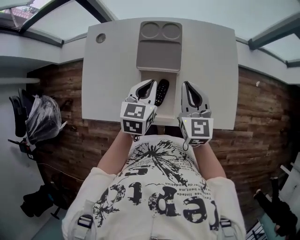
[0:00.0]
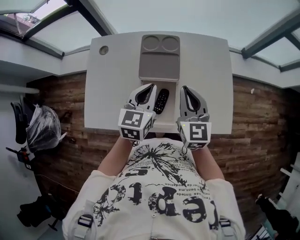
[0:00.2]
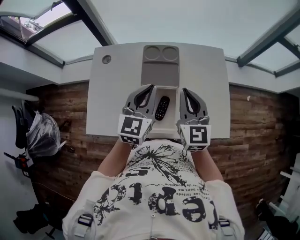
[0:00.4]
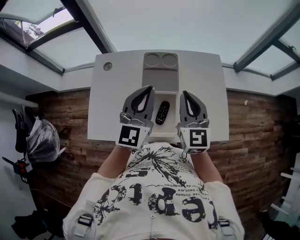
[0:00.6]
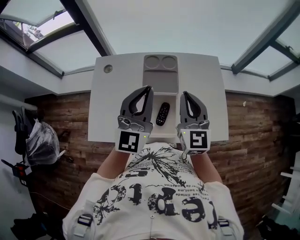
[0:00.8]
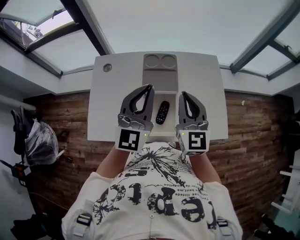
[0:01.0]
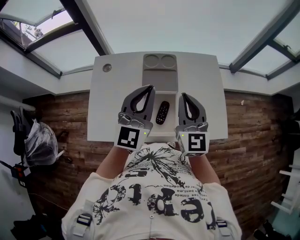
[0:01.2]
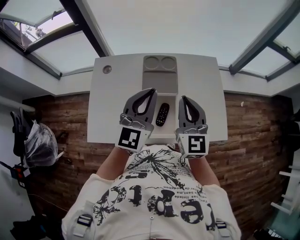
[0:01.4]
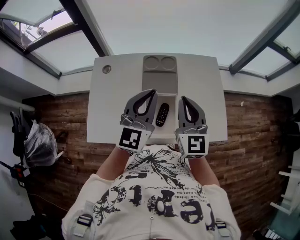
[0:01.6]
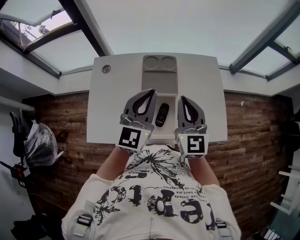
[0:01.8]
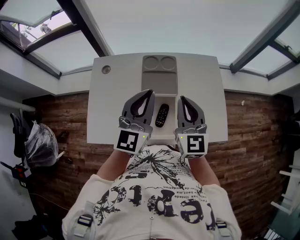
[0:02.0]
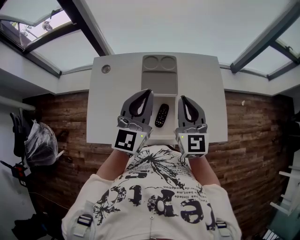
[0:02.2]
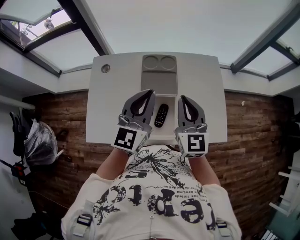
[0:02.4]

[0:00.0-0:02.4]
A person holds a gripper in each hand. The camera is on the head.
0:00.0 to 0:01.2: The right gripper travels upward by approximately 10 cm, and swivels approximately 20 degrees; the left gripper moves upward, roughly 20 cm, and angles its fingers upward, by some 40 degrees.
0:01.2 to 0:02.4: The grippers move only a little.

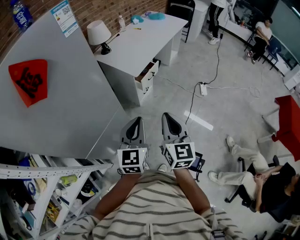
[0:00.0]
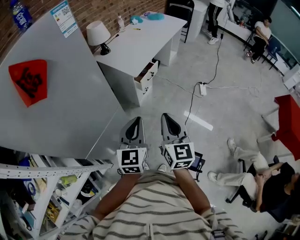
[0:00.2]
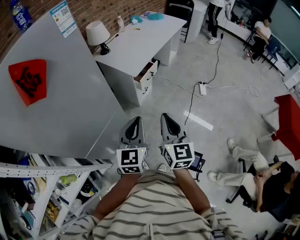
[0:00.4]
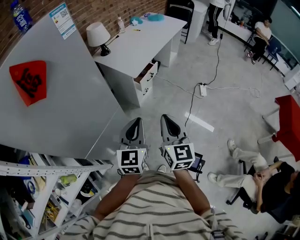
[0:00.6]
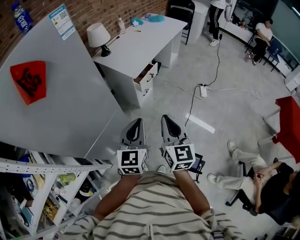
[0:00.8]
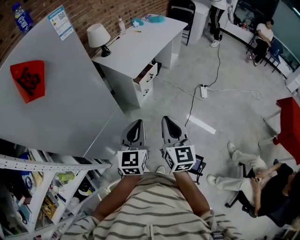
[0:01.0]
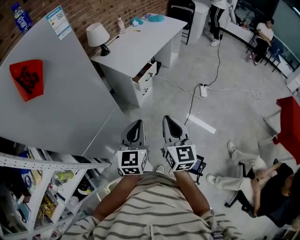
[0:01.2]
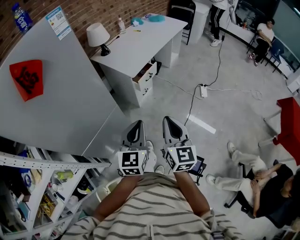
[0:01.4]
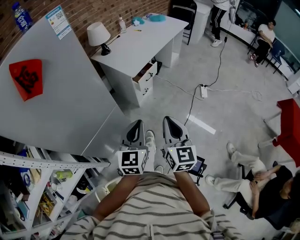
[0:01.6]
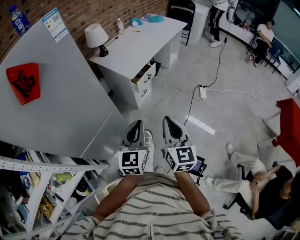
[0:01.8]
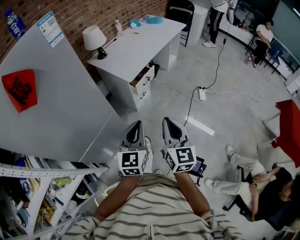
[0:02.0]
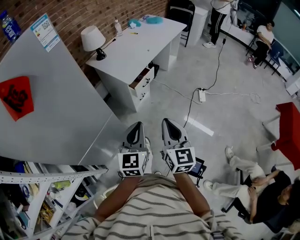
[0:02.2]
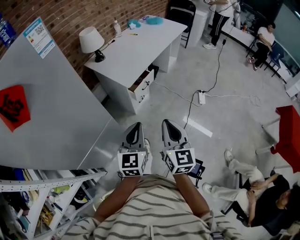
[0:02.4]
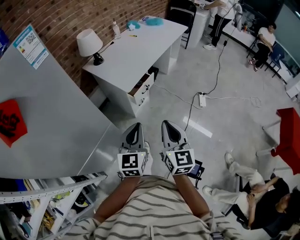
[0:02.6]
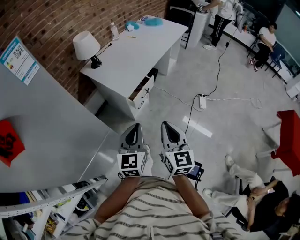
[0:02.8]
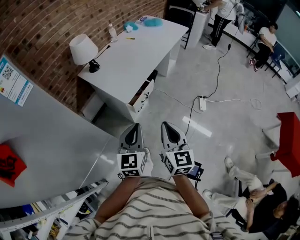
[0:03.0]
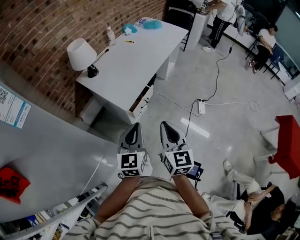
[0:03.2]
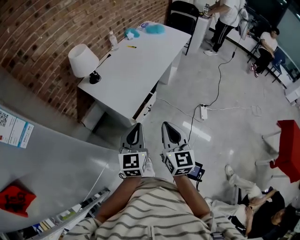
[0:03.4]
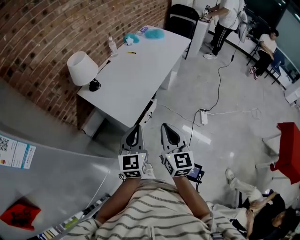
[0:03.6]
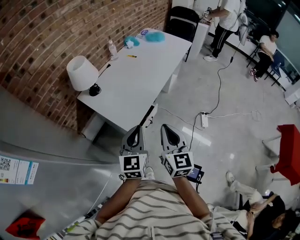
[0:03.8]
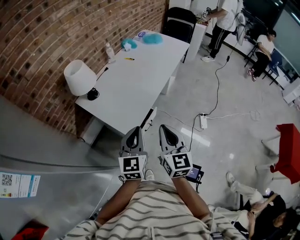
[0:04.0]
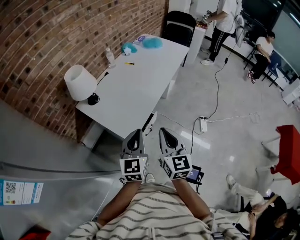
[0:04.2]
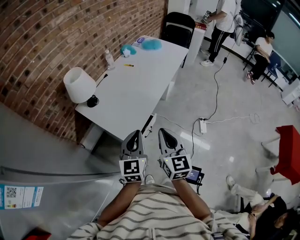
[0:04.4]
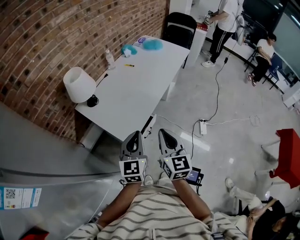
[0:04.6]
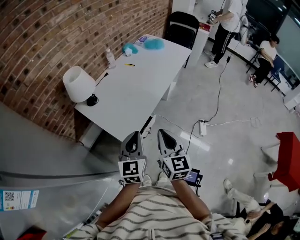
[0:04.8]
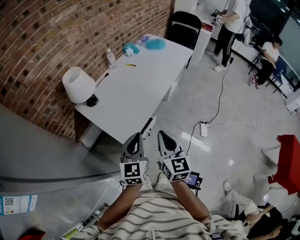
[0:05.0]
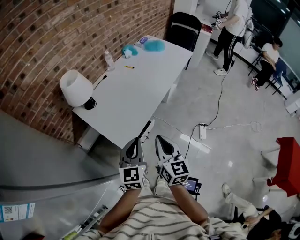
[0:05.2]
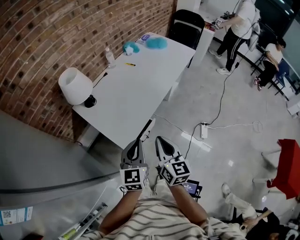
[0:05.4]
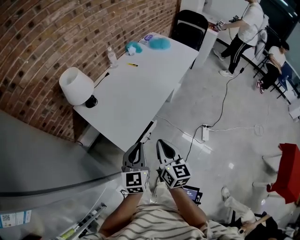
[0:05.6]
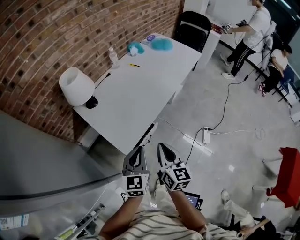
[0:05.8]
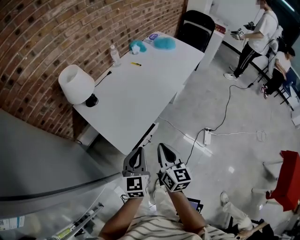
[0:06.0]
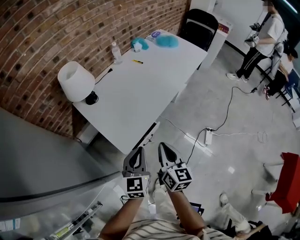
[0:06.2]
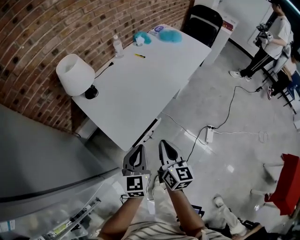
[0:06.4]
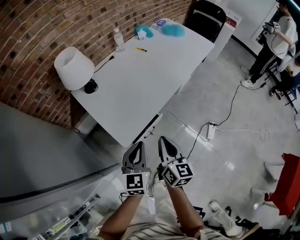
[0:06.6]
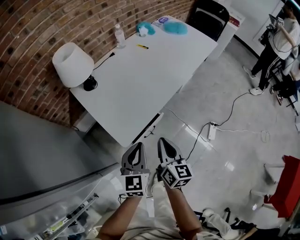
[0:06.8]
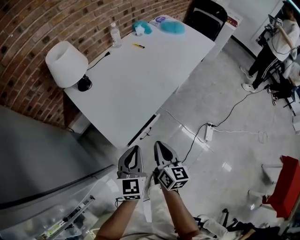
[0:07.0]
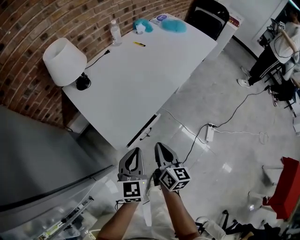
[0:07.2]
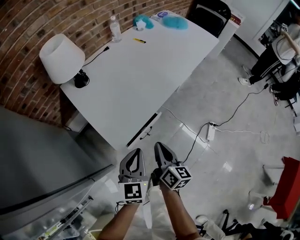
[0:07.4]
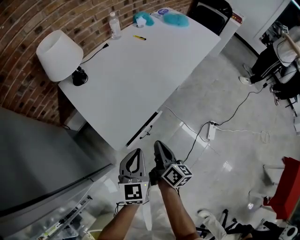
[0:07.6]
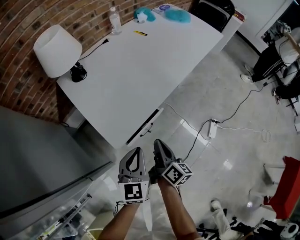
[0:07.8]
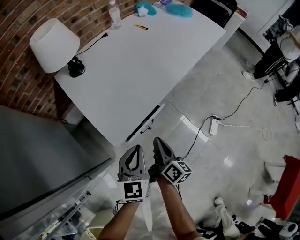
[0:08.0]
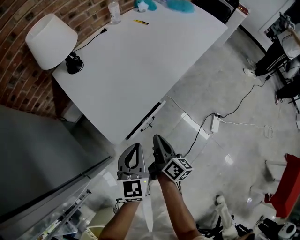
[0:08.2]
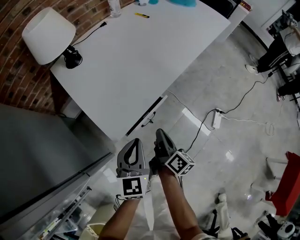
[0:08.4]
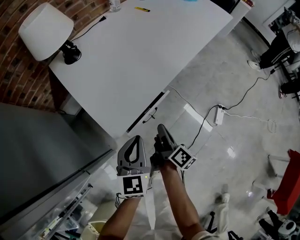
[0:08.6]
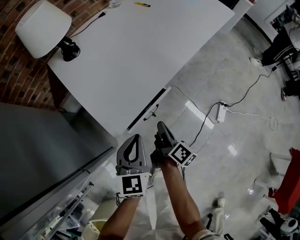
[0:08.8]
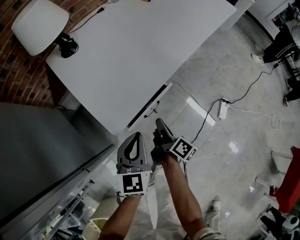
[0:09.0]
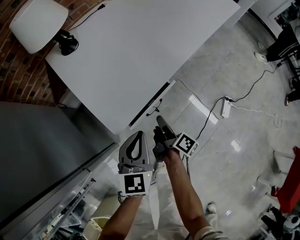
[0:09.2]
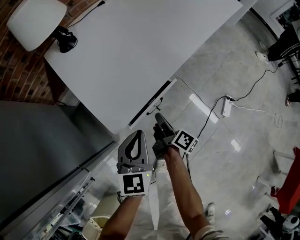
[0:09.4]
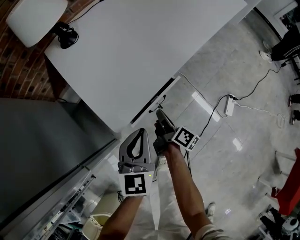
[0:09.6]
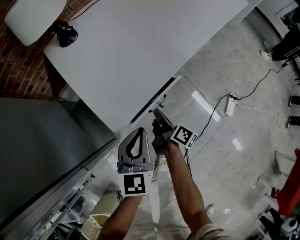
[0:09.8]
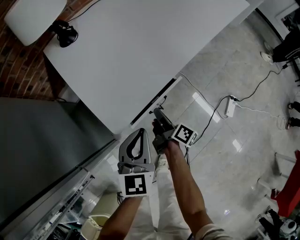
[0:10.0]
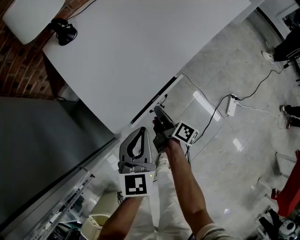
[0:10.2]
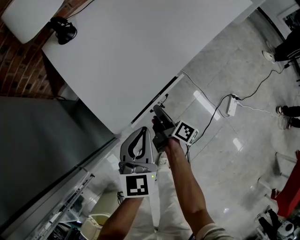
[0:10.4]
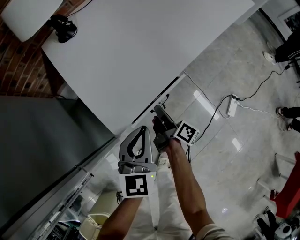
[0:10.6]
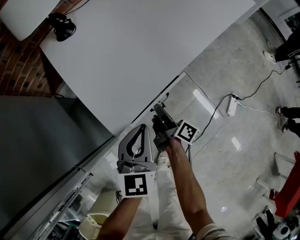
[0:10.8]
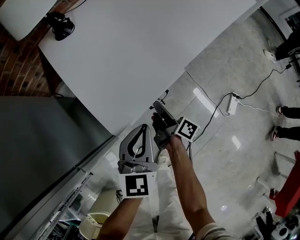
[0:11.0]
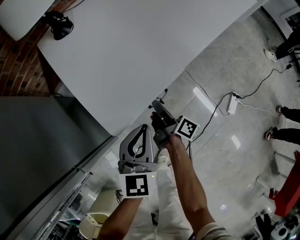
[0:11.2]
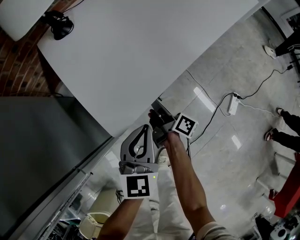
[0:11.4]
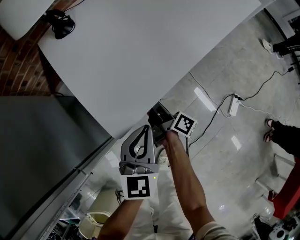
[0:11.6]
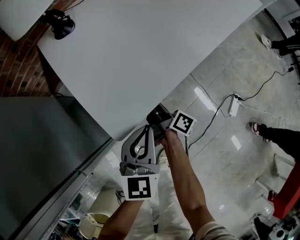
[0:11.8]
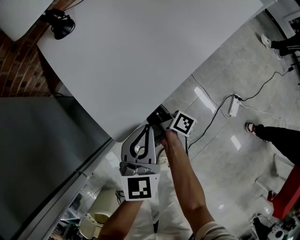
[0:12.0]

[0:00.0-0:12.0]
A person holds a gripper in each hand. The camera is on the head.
0:00.0 to 0:01.6: The grippers both shift to the right by roughly 5 cm.
0:01.6 to 0:03.0: Both grippers travel together forward, about 25 cm.
0:03.0 to 0:04.4: The grippers both shift forward by about 25 cm.
0:04.4 to 0:06.0: The right gripper shifts some 10 cm downward and forward. The left gripper heads downward, covering about 5 cm.
0:06.0 to 0:07.6: The grippers both shift downward by some 15 cm. The right gripper rotates about 30 degrees.
0:07.6 to 0:09.0: The left gripper goes approximately 10 cm downward, while the right gripper is displaced downward by some 15 cm, and swivels approximately 20 degrees.
0:09.0 to 0:10.4: The right gripper goes roughly 5 cm downward.
0:10.4 to 0:12.0: The right gripper travels forward by about 5 cm.

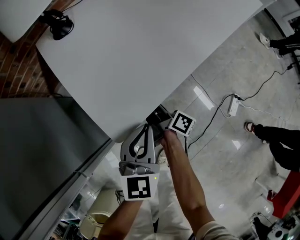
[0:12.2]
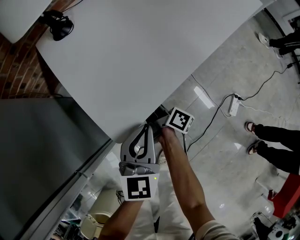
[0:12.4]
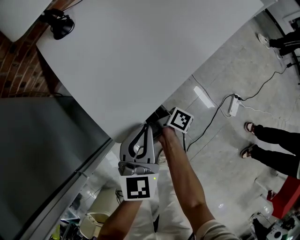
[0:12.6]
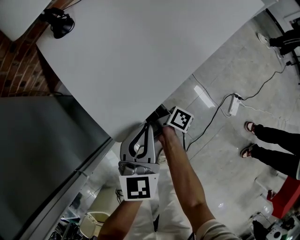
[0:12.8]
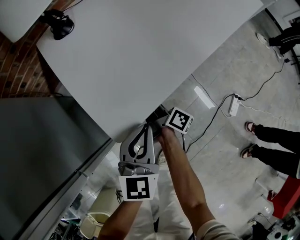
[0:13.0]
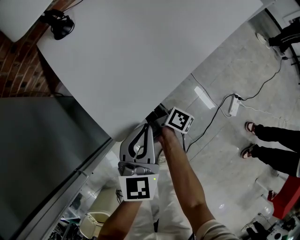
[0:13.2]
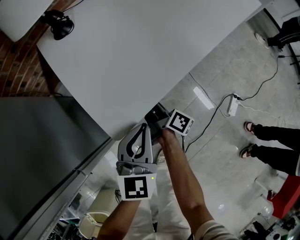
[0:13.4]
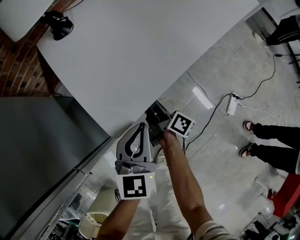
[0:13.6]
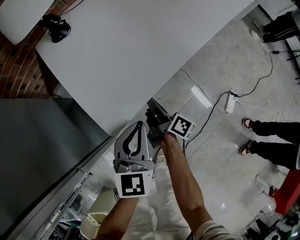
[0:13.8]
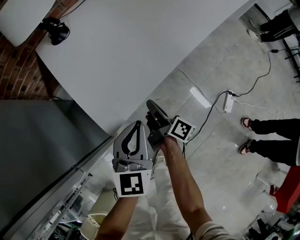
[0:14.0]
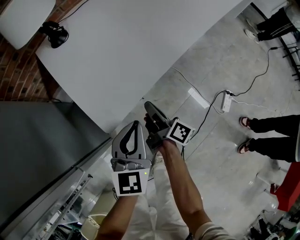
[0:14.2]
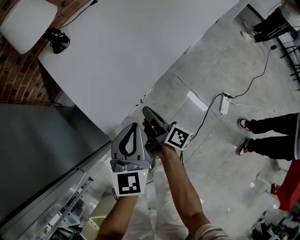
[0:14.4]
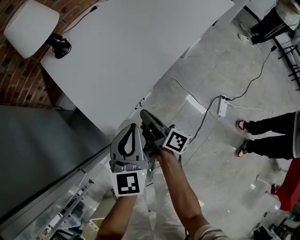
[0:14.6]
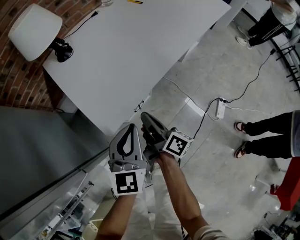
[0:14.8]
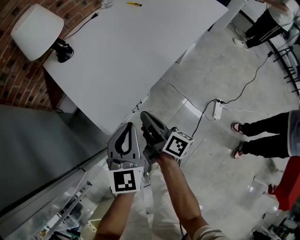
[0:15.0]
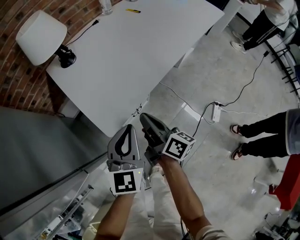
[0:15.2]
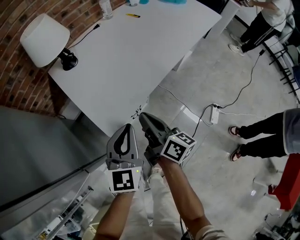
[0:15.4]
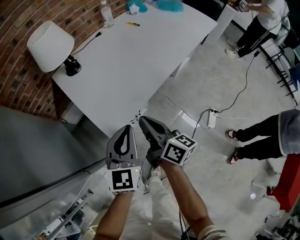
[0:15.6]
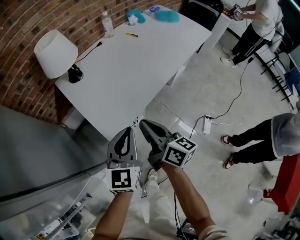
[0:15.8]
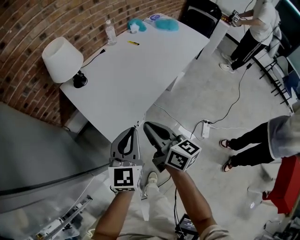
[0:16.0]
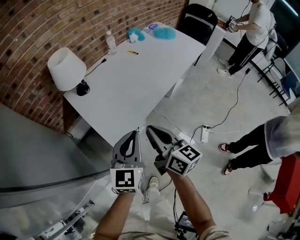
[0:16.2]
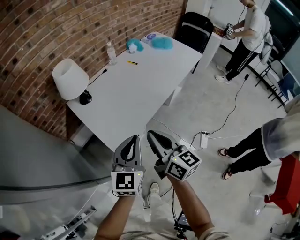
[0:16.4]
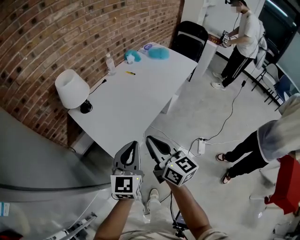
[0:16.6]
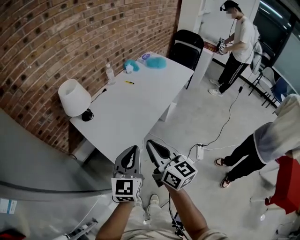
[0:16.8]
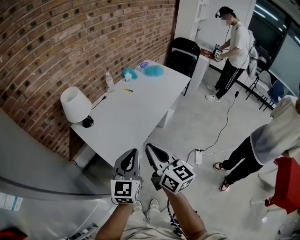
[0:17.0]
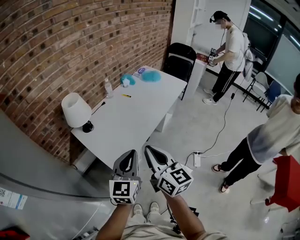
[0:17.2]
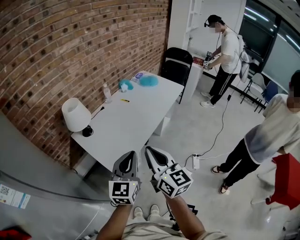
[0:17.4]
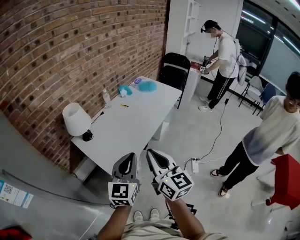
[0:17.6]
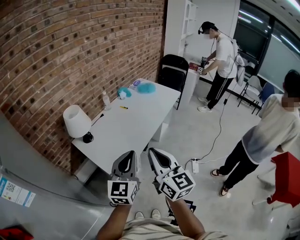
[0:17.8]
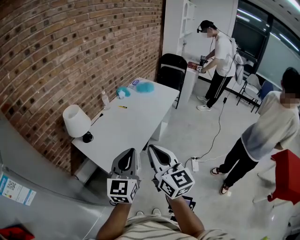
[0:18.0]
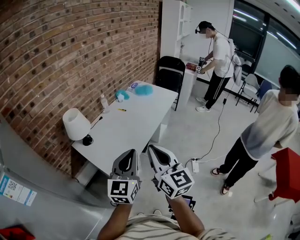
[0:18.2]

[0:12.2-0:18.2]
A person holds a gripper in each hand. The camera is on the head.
0:12.2 to 0:13.8: The grippers move only a little.
0:13.8 to 0:15.2: The right gripper travels upward by roughly 20 cm. Meanwhile the left gripper moves upward, about 10 cm.
0:15.2 to 0:16.6: Both grippers travel together upward, some 25 cm. The right gripper changes its angle by about 40 degrees.
0:16.6 to 0:18.2: The left gripper travels upward by about 15 cm, while the right gripper heads upward and backward, covering about 20 cm, and swivels about 20 degrees.

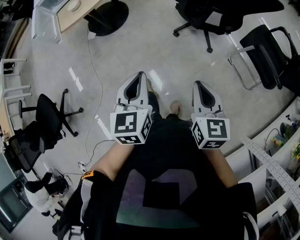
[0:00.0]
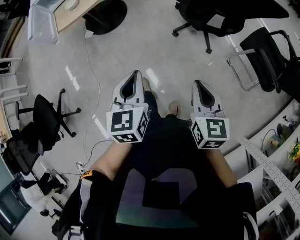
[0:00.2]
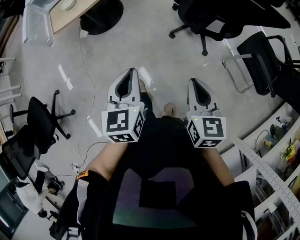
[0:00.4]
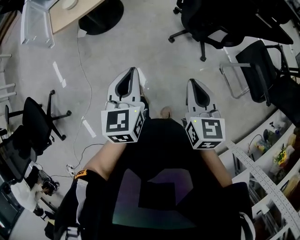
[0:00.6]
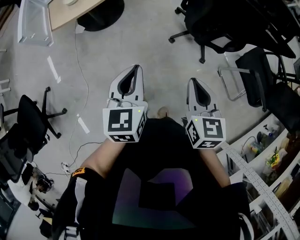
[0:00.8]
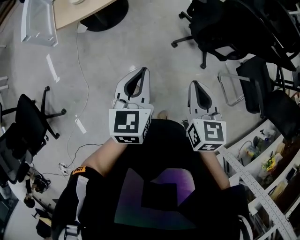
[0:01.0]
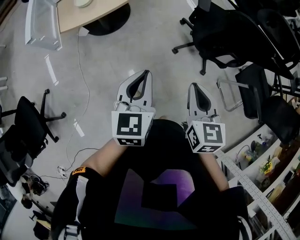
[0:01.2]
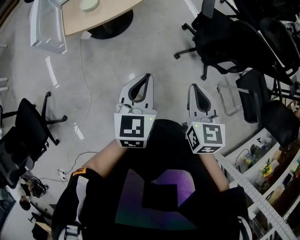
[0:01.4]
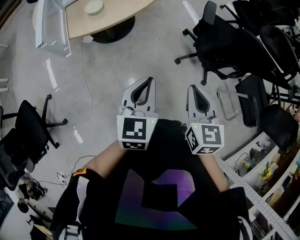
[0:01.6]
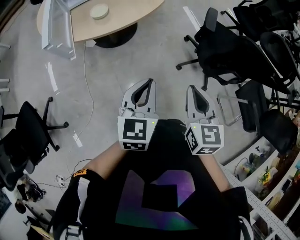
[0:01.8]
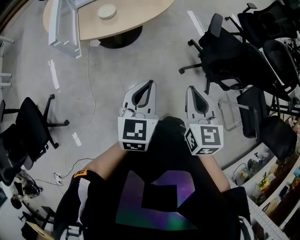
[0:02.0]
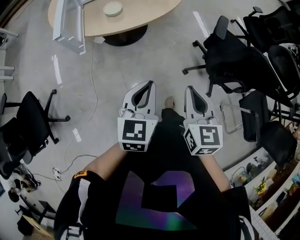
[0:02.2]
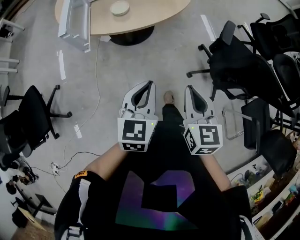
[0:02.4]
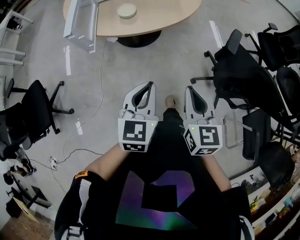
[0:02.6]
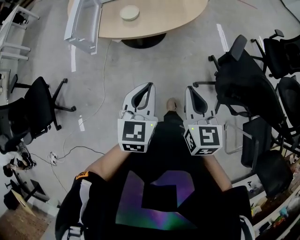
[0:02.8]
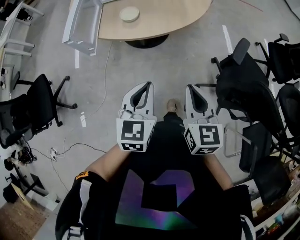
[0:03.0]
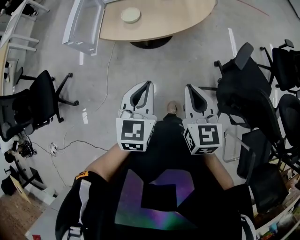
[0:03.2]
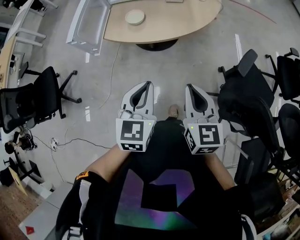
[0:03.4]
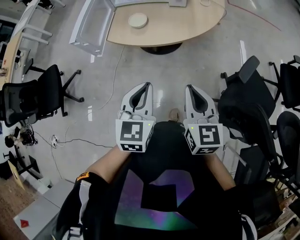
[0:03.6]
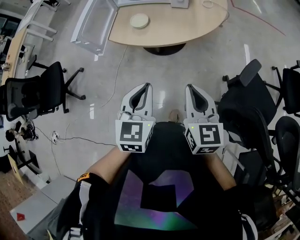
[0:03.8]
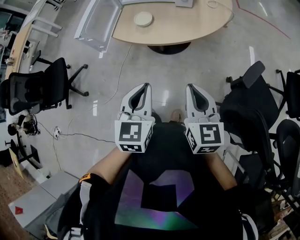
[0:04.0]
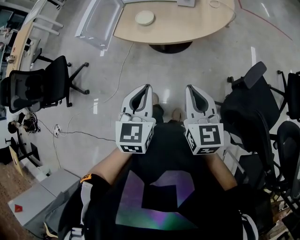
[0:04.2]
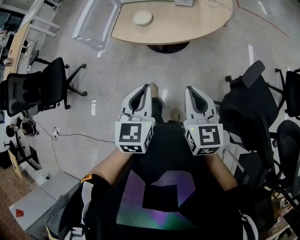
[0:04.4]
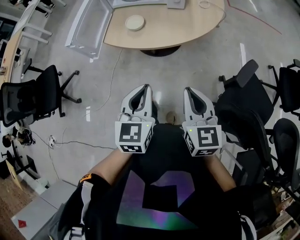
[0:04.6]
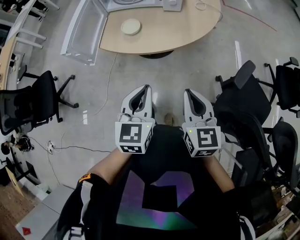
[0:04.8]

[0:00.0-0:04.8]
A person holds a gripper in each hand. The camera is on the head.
0:00.0 to 0:01.6: Both grippers travel together forward and to the left, about 35 cm.
0:01.6 to 0:03.2: The right gripper moves roughly 15 cm, and swivels about 30 degrees. Meanwhile the left gripper ends up some 10 cm from where it was, and rotates about 20 degrees.
0:03.2 to 0:04.8: The two grippers go approximately 5 cm forward.
